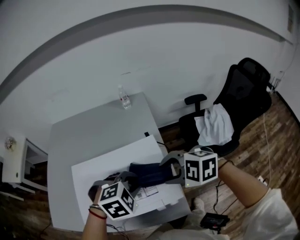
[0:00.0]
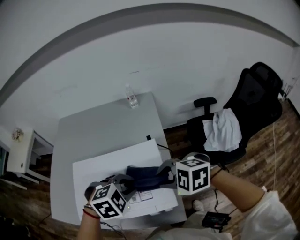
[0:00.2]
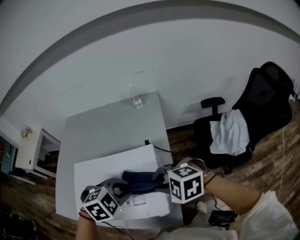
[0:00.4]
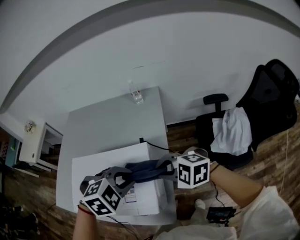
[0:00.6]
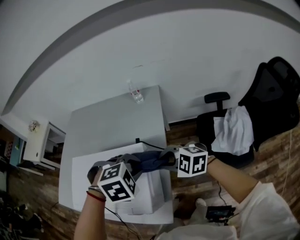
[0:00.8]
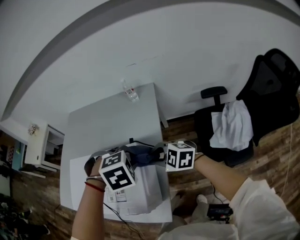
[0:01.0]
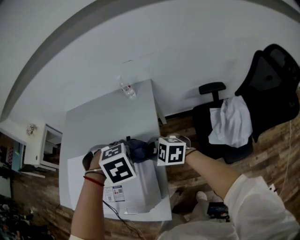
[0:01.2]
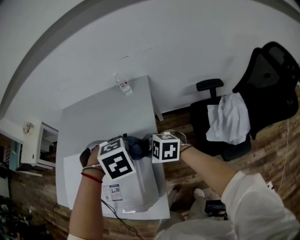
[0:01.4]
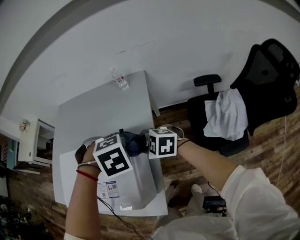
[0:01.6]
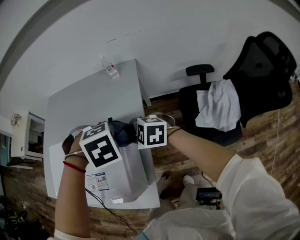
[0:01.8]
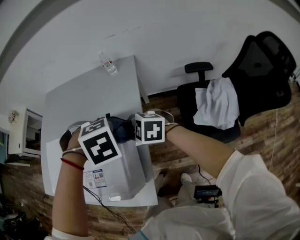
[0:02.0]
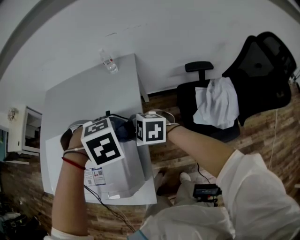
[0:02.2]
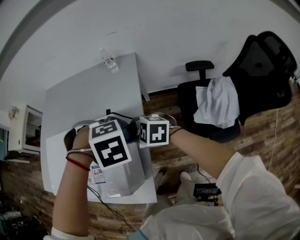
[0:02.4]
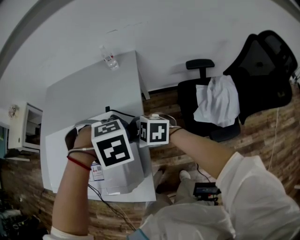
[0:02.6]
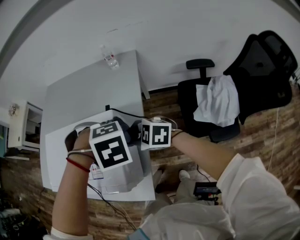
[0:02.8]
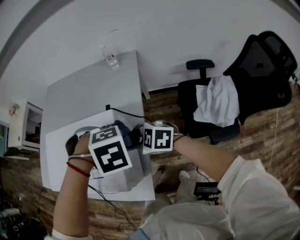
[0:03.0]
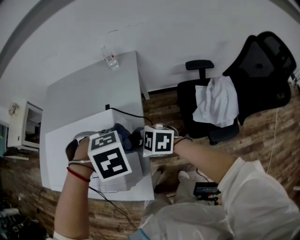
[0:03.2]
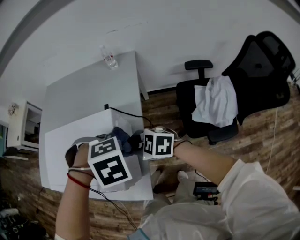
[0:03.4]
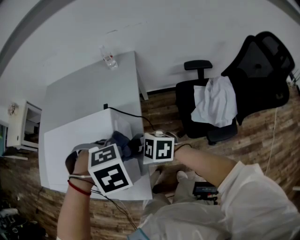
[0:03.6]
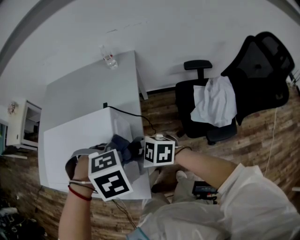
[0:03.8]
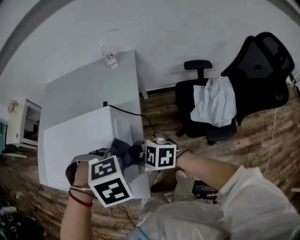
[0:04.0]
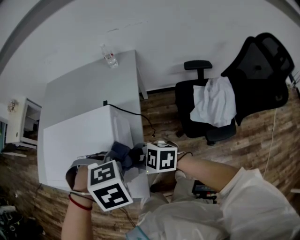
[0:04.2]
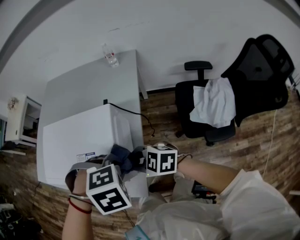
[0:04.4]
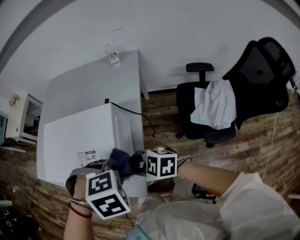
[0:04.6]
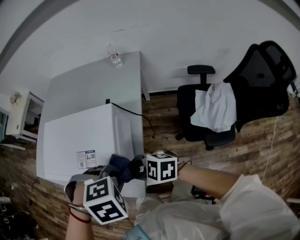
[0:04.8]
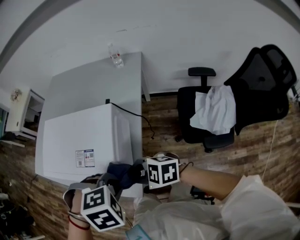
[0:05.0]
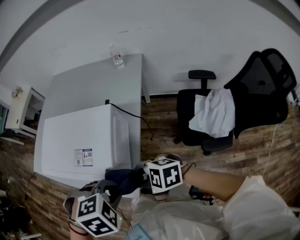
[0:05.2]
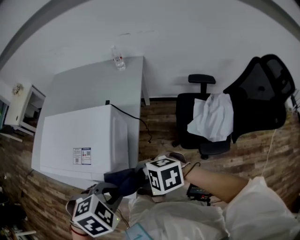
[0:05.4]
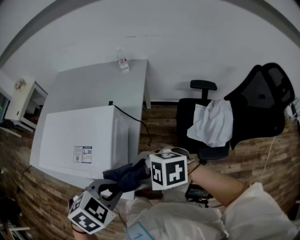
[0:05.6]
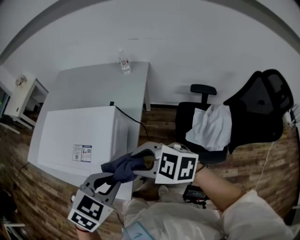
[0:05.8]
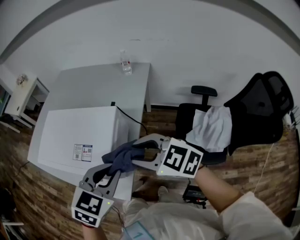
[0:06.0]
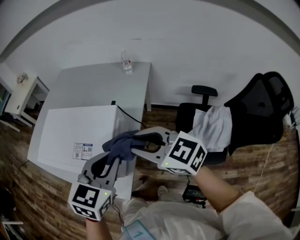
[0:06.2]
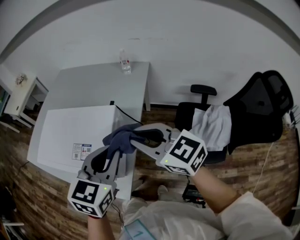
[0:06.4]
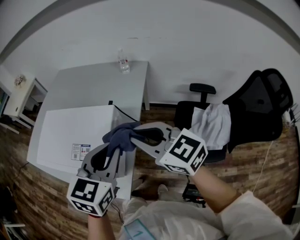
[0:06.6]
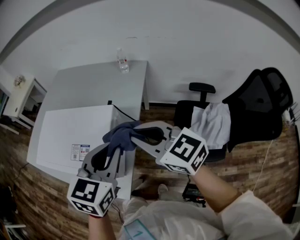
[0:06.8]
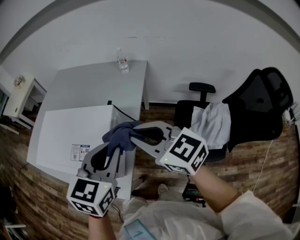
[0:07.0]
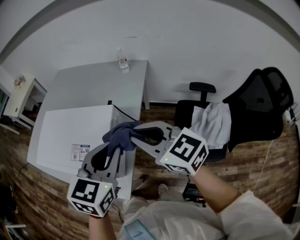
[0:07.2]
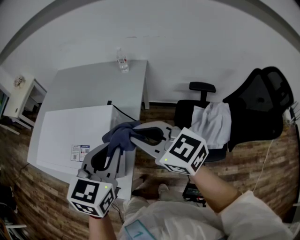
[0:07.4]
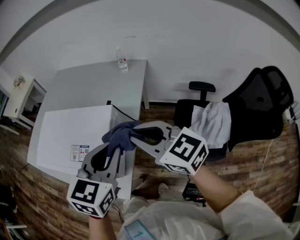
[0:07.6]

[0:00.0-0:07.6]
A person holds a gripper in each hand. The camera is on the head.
0:00.0 to 0:01.6: The right gripper moves roughly 15 cm, and closes. Meanwhile the left gripper moves approximately 15 cm, and turns by approximately 30 degrees.
0:01.6 to 0:03.0: The left gripper ends up some 5 cm from where it was; the right gripper changes place by some 10 cm.
0:03.0 to 0:04.6: The right gripper moves roughly 15 cm. Meanwhile the left gripper shifts by roughly 10 cm.
0:04.6 to 0:06.0: The right gripper moves upward, roughly 15 cm, and opens its fingers, while the left gripper goes some 5 cm upward, and angles its fingers upward, by roughly 50 degrees.
0:06.0 to 0:07.6: The left gripper is displaced forward by some 5 cm, while the right gripper ends up about 5 cm from where it was, changes its angle by about 20 degrees, and closes.

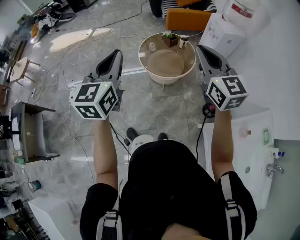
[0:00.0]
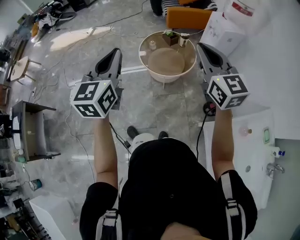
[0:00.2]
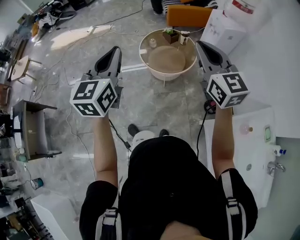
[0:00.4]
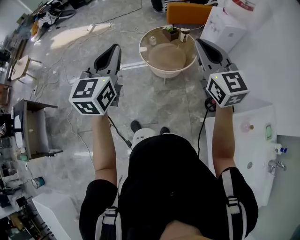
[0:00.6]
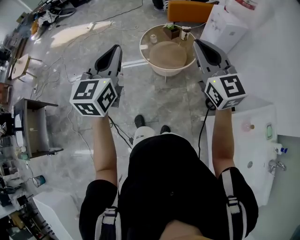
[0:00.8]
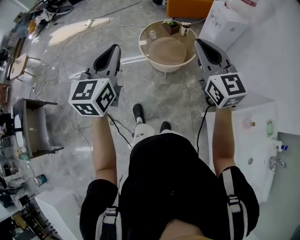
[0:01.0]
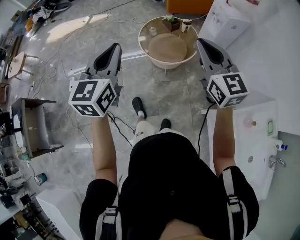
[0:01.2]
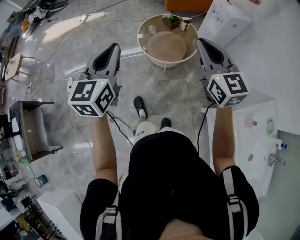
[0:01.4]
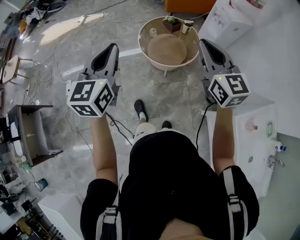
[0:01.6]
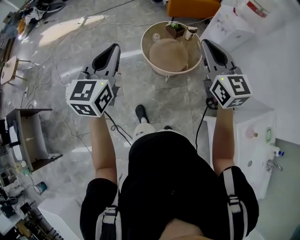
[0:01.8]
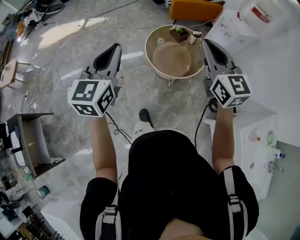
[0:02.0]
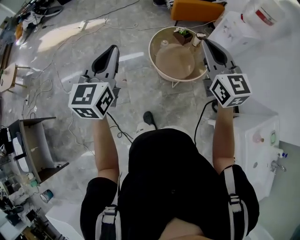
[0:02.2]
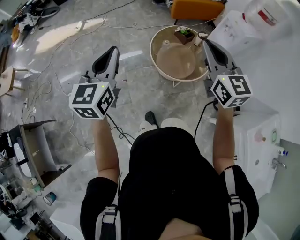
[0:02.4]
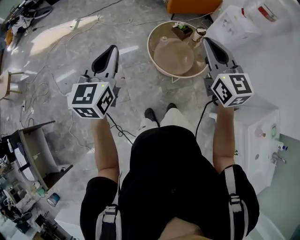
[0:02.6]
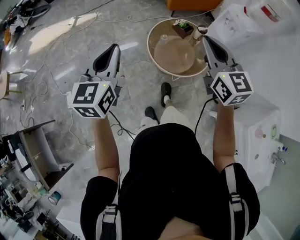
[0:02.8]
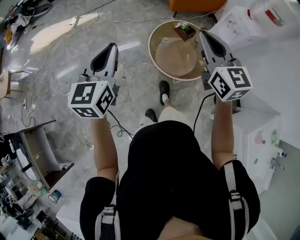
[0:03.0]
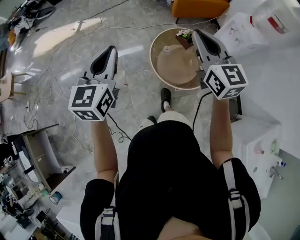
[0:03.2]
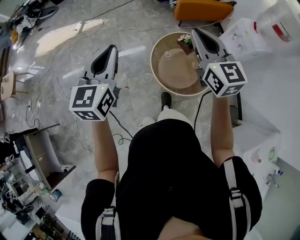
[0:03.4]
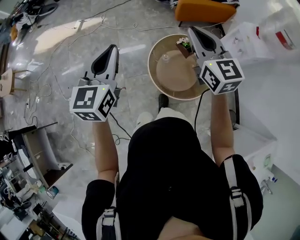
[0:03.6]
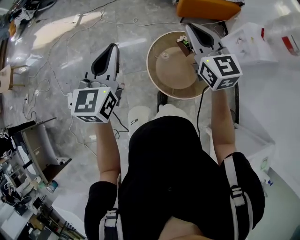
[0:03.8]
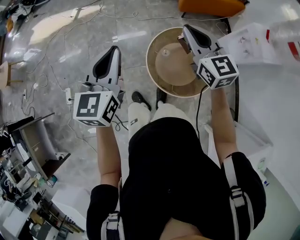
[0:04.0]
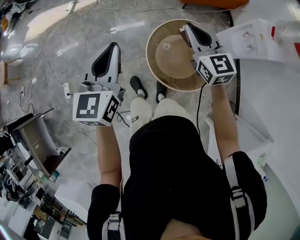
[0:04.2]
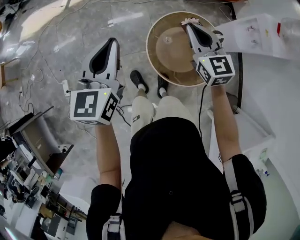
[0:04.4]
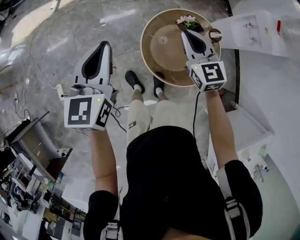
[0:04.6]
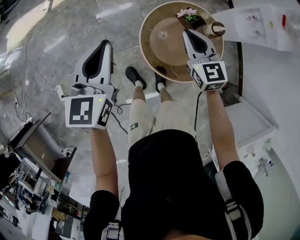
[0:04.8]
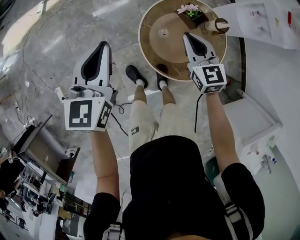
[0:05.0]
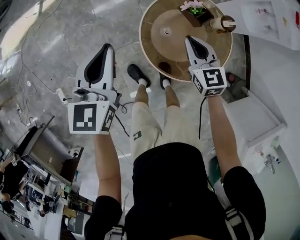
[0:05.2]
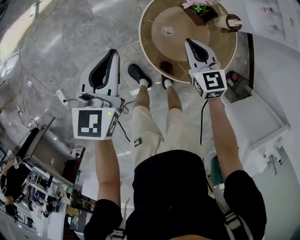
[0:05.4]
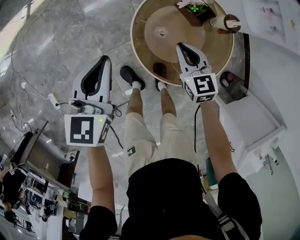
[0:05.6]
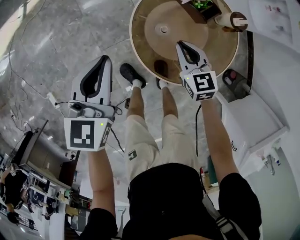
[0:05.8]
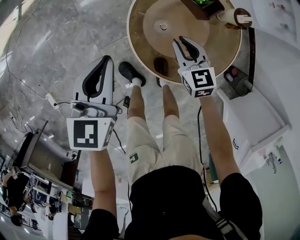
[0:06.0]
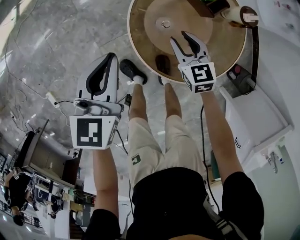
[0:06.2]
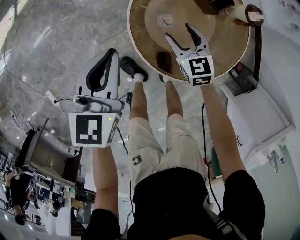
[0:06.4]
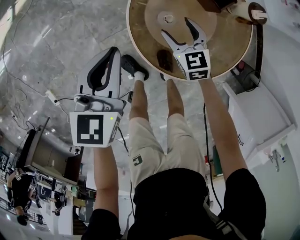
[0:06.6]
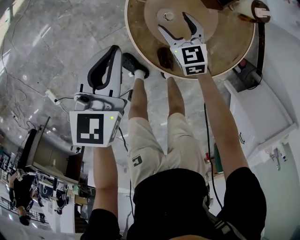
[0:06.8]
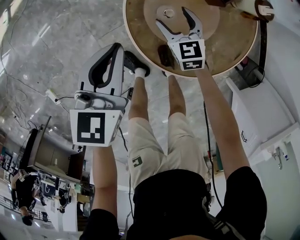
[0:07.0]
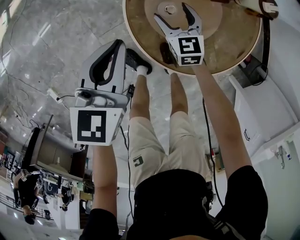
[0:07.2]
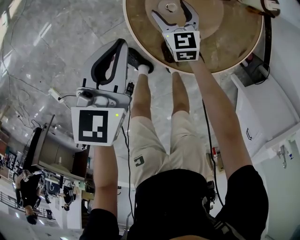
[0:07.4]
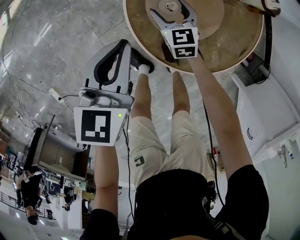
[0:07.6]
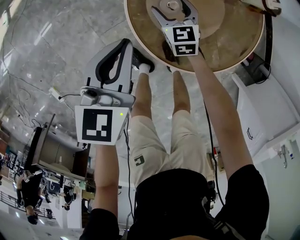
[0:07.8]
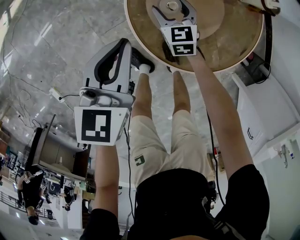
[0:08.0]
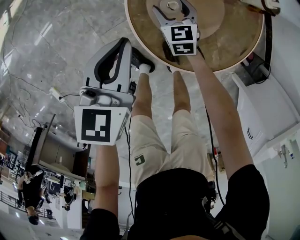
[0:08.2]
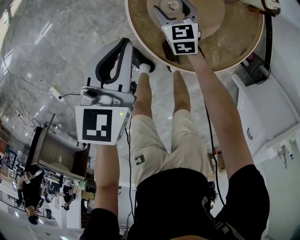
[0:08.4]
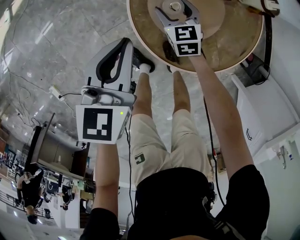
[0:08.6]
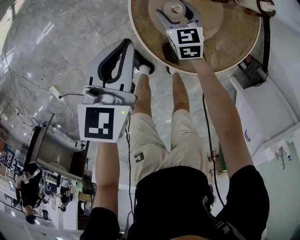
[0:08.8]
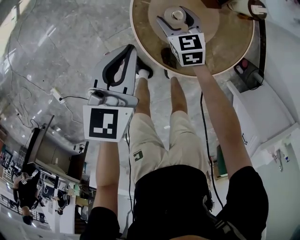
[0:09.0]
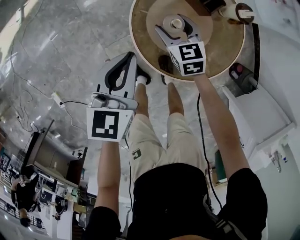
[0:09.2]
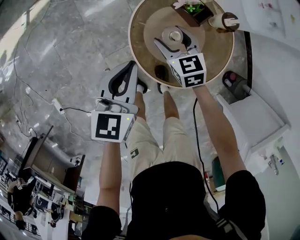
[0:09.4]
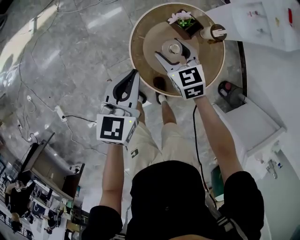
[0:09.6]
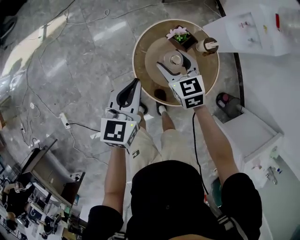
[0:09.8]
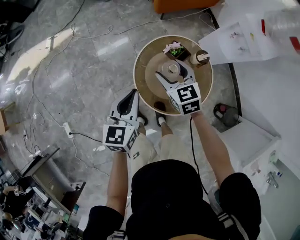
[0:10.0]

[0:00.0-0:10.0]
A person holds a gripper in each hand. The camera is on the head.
0:00.0 to 0:01.4: The left gripper moves some 5 cm, while the right gripper changes place by some 5 cm.
0:01.4 to 0:02.8: Both grippers move forward and to the left, some 30 cm.
0:02.8 to 0:04.2: The right gripper is displaced forward and downward by some 35 cm; the left gripper moves forward, roughly 25 cm.
0:04.2 to 0:05.8: The two grippers go approximately 35 cm downward. The left gripper turns by some 20 degrees; the right gripper swivels approximately 30 degrees.
0:05.8 to 0:07.2: The two grippers go roughly 15 cm downward. The right gripper opens its fingers.
0:07.2 to 0:08.6: The grippers make only small movements.
0:08.6 to 0:10.0: The left gripper moves upward, approximately 25 cm. The right gripper goes approximately 40 cm upward.

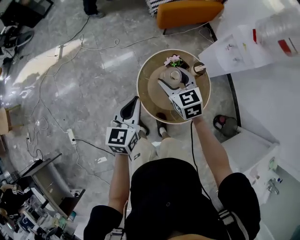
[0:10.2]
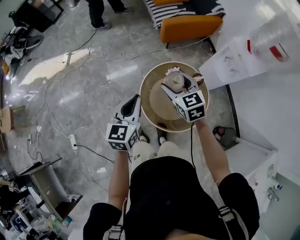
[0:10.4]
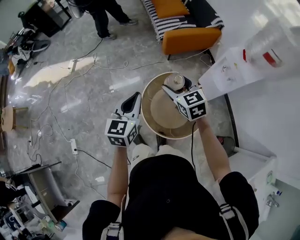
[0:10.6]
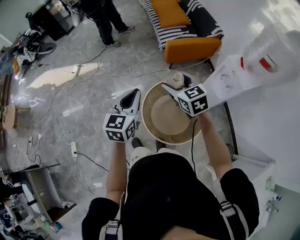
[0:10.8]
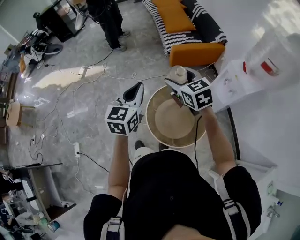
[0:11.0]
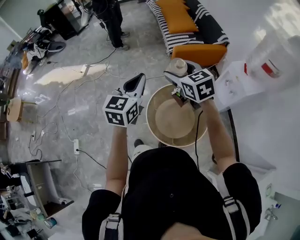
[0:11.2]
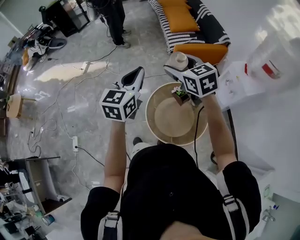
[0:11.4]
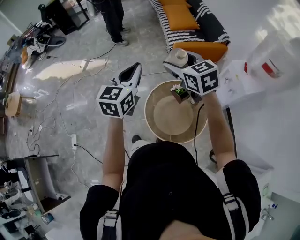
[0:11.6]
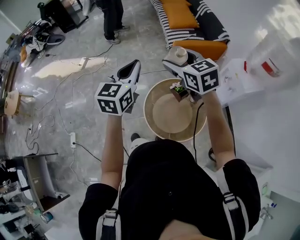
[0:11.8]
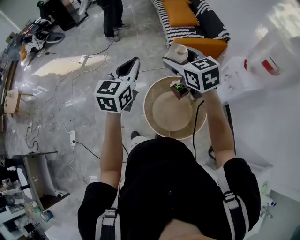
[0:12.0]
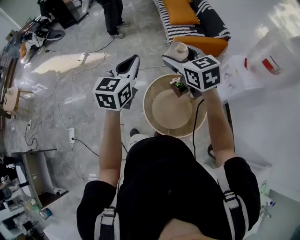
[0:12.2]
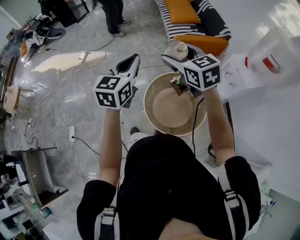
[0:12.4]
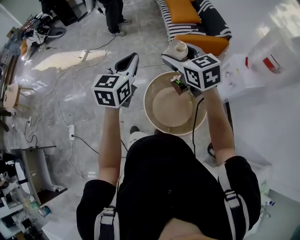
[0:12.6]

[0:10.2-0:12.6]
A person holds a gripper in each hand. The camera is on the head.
0:10.2 to 0:11.4: The grippers both shift upward by some 25 cm.
0:11.4 to 0:12.6: There are only small adjustments of the grippers.

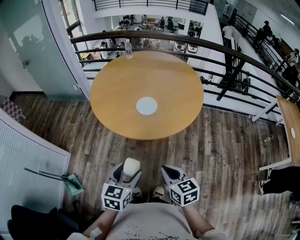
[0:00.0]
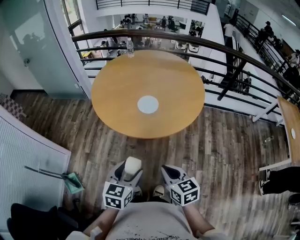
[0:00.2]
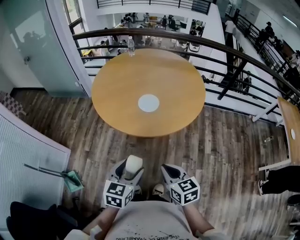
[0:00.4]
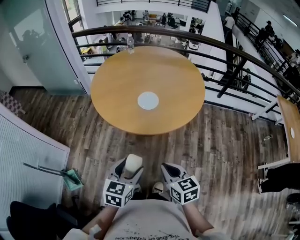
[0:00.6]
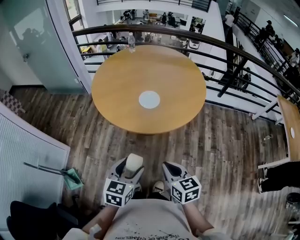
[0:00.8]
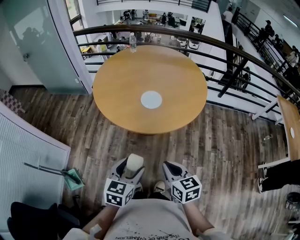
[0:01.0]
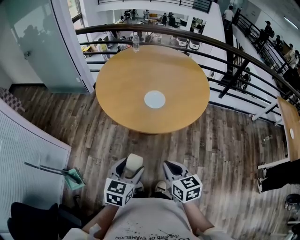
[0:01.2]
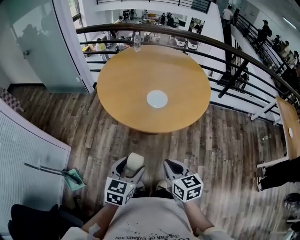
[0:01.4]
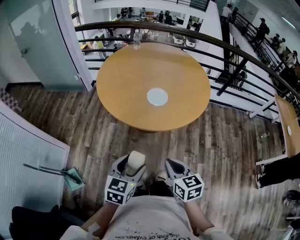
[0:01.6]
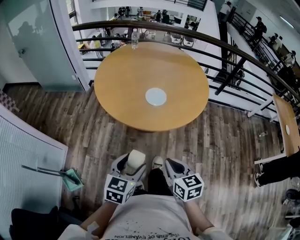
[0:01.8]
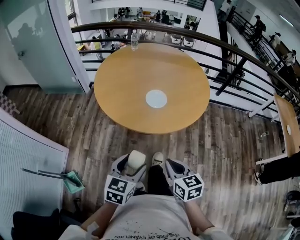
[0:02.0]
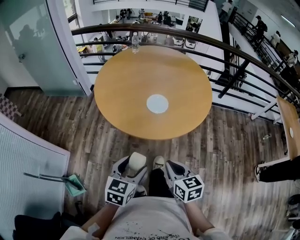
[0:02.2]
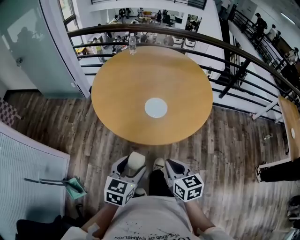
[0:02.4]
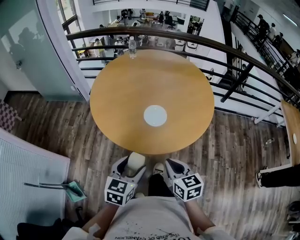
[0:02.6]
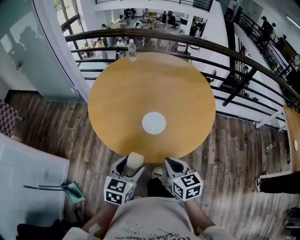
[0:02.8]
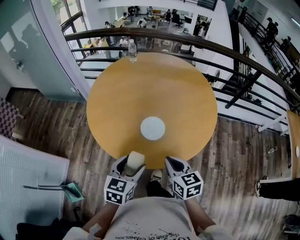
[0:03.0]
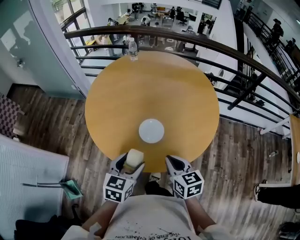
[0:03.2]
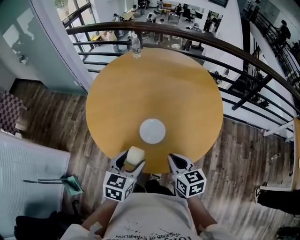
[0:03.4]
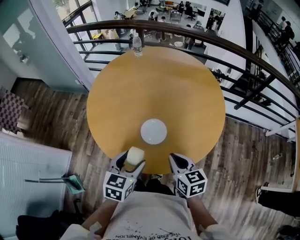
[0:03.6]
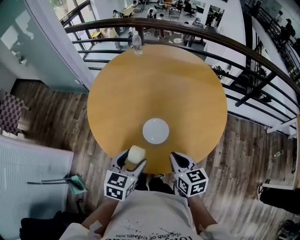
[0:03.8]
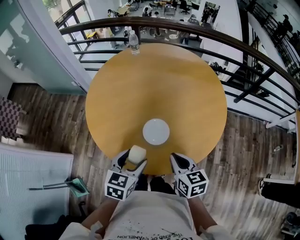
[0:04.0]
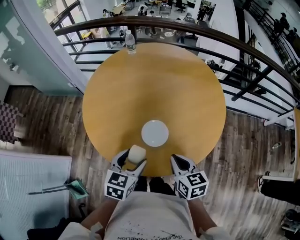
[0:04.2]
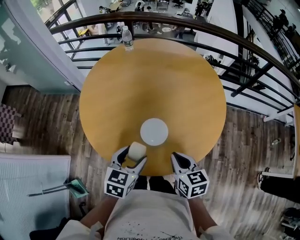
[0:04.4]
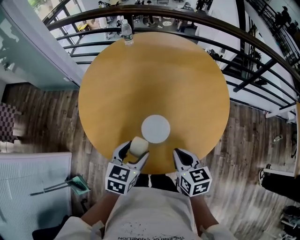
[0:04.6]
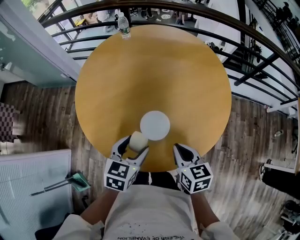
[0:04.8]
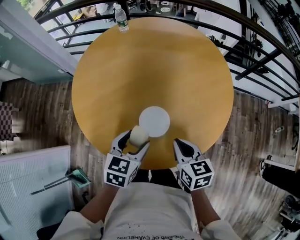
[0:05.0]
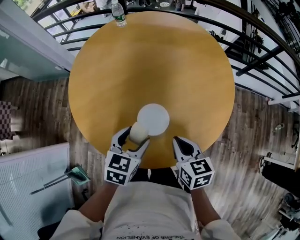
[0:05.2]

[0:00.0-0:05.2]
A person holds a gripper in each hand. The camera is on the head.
0:00.0 to 0:01.8: The grippers both shift to the left by roughly 5 cm.
0:01.8 to 0:03.4: Both grippers move forward, some 30 cm.
0:03.4 to 0:05.2: The two grippers go approximately 10 cm forward and downward.
